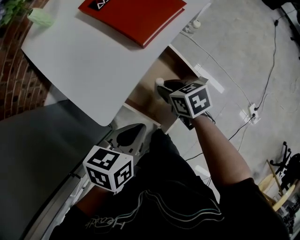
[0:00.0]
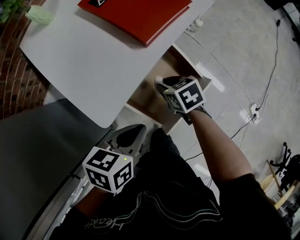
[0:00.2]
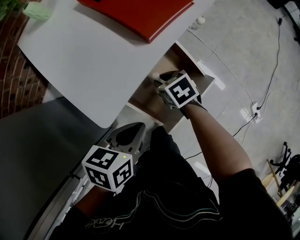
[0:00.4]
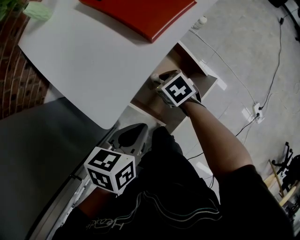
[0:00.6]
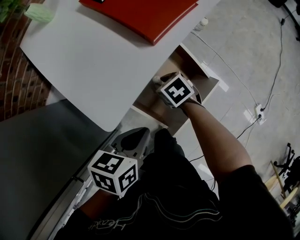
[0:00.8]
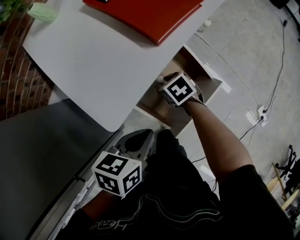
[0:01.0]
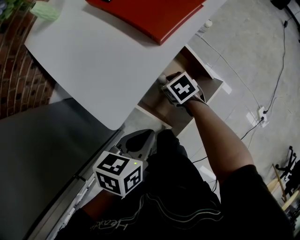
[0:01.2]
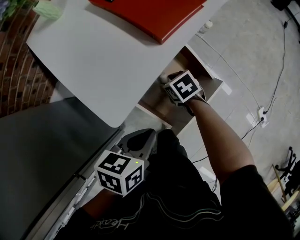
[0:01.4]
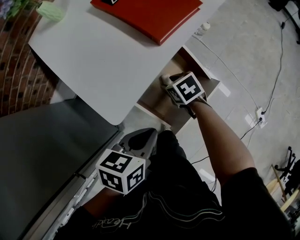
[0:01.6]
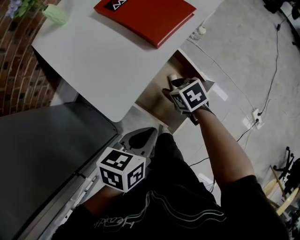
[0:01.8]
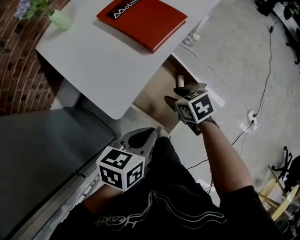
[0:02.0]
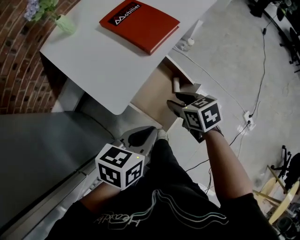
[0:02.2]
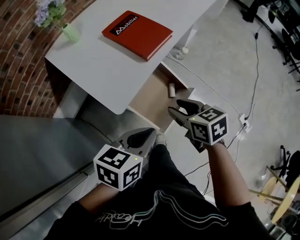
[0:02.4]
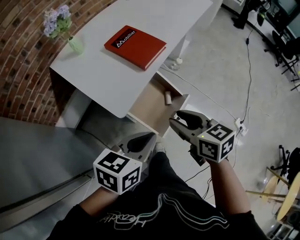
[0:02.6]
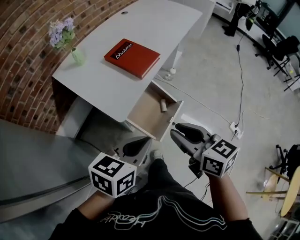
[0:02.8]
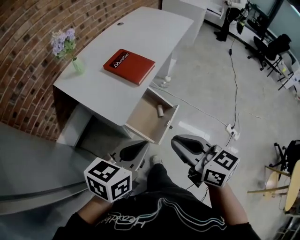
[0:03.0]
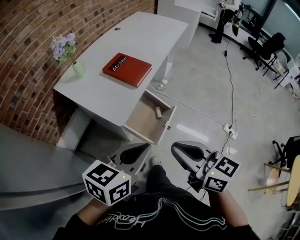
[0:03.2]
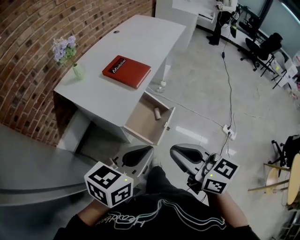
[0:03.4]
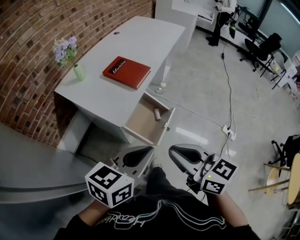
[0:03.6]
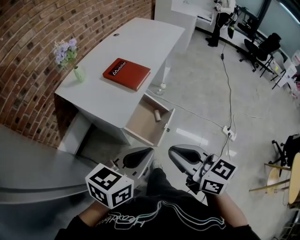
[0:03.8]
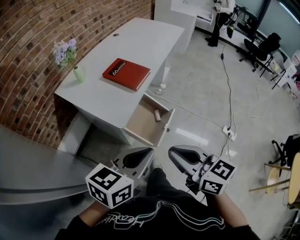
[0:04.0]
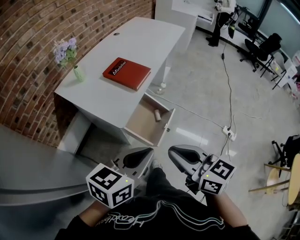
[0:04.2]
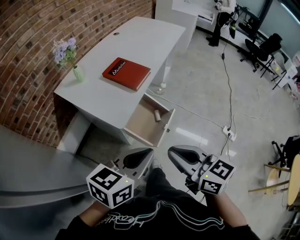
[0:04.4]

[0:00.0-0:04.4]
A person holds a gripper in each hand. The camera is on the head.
0:00.0 to 0:01.4: The right gripper travels downward by approximately 10 cm.
0:01.4 to 0:03.0: The right gripper goes roughly 60 cm upward and backward, angles its fingers upward, by some 40 degrees, and closes up. Meanwhile the left gripper moves upward and backward, roughly 35 cm, and rotates approximately 30 degrees.
0:03.0 to 0:04.4: The right gripper is displaced backward by roughly 5 cm, while the left gripper changes place by approximately 5 cm.

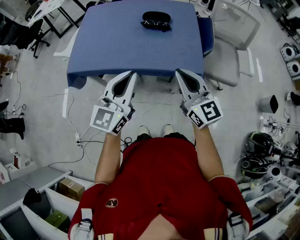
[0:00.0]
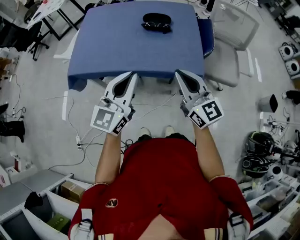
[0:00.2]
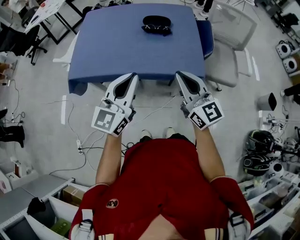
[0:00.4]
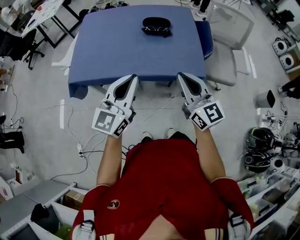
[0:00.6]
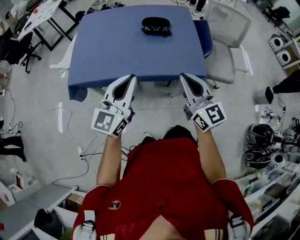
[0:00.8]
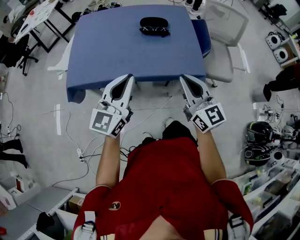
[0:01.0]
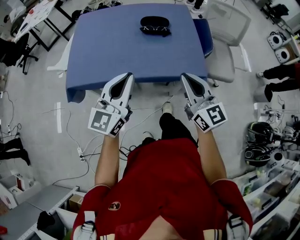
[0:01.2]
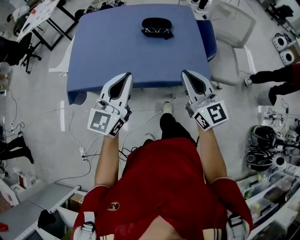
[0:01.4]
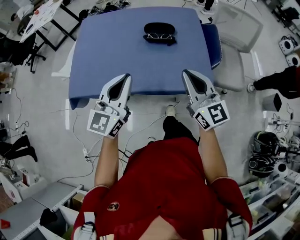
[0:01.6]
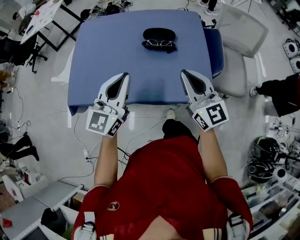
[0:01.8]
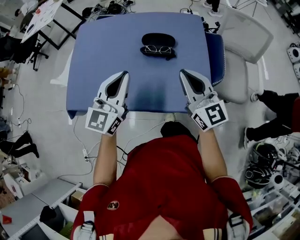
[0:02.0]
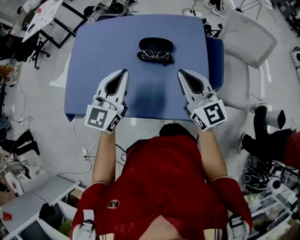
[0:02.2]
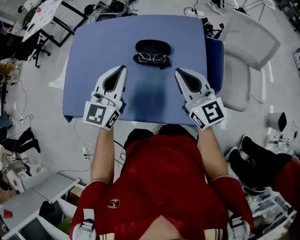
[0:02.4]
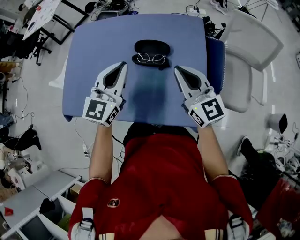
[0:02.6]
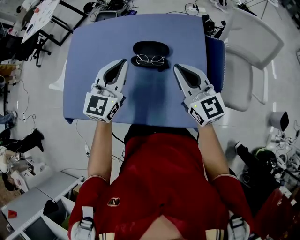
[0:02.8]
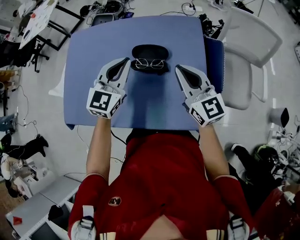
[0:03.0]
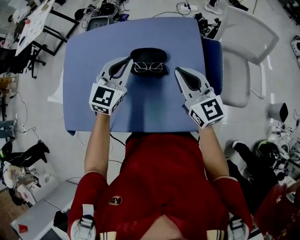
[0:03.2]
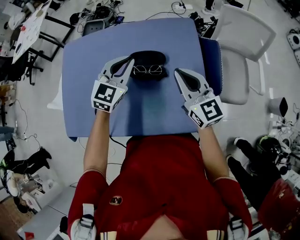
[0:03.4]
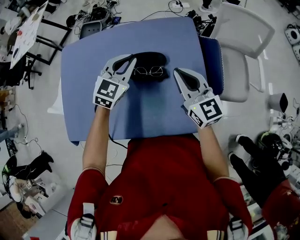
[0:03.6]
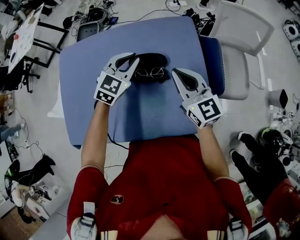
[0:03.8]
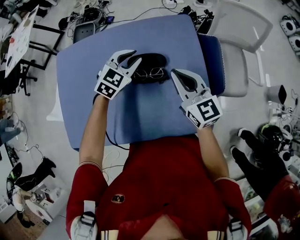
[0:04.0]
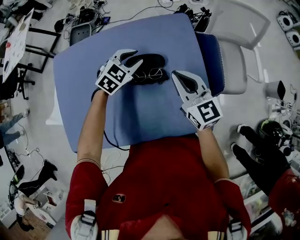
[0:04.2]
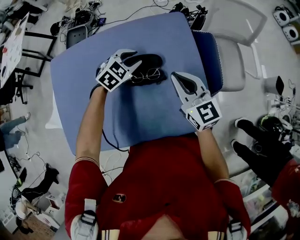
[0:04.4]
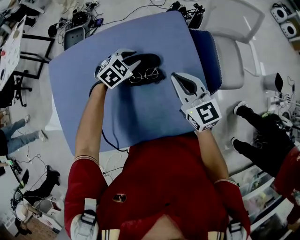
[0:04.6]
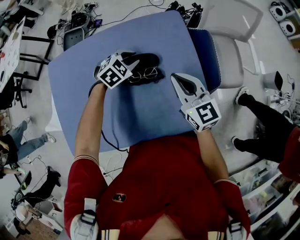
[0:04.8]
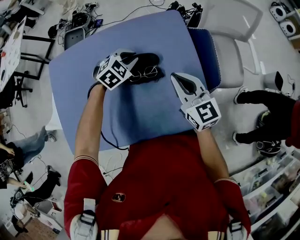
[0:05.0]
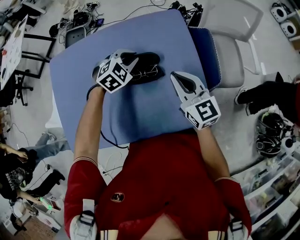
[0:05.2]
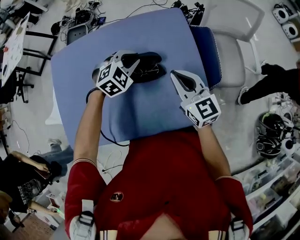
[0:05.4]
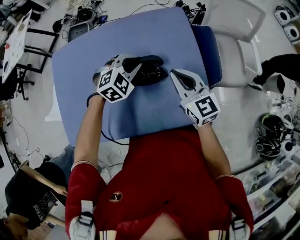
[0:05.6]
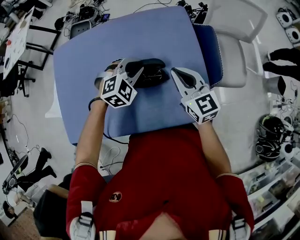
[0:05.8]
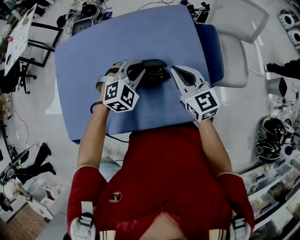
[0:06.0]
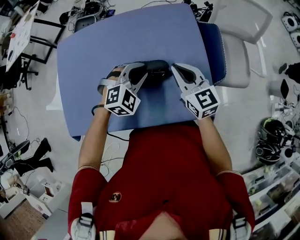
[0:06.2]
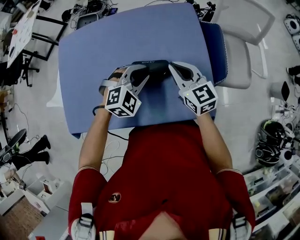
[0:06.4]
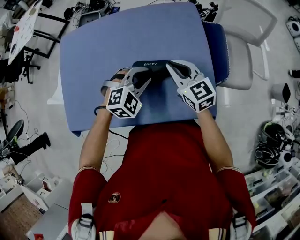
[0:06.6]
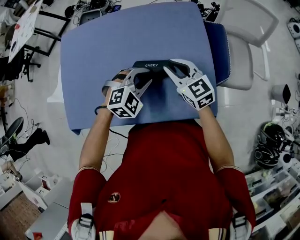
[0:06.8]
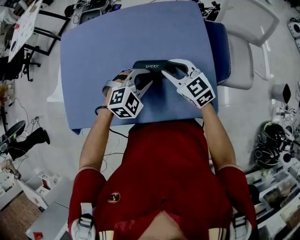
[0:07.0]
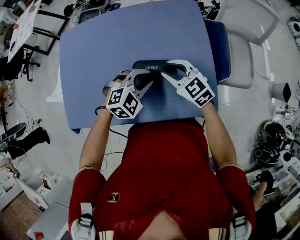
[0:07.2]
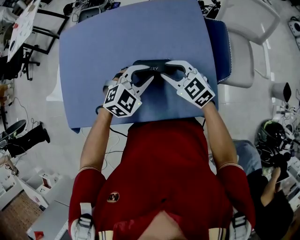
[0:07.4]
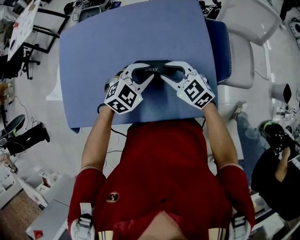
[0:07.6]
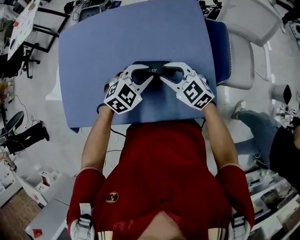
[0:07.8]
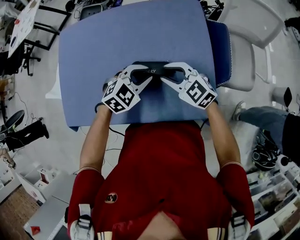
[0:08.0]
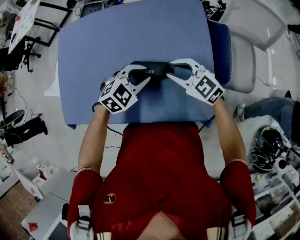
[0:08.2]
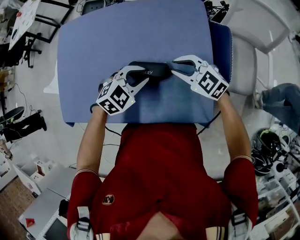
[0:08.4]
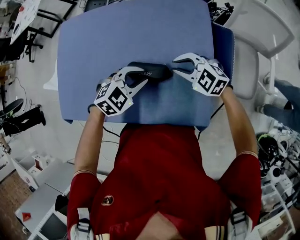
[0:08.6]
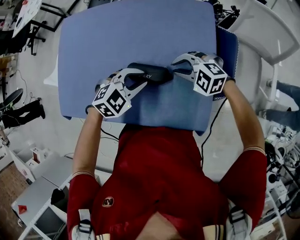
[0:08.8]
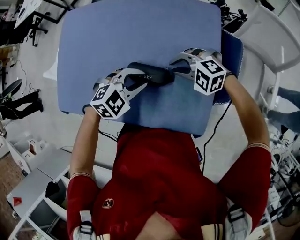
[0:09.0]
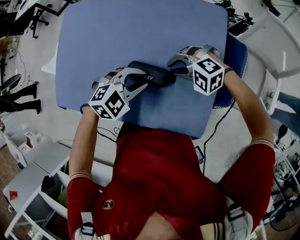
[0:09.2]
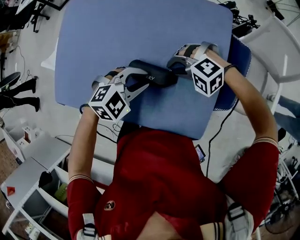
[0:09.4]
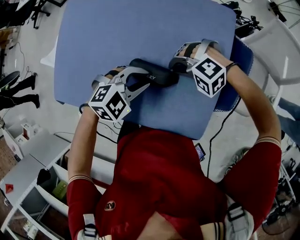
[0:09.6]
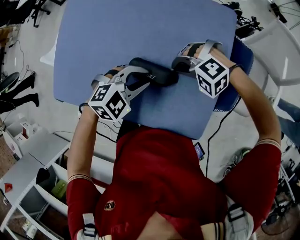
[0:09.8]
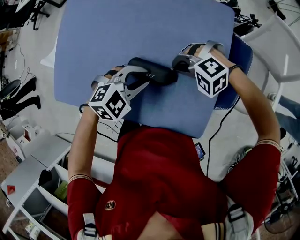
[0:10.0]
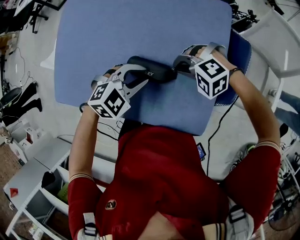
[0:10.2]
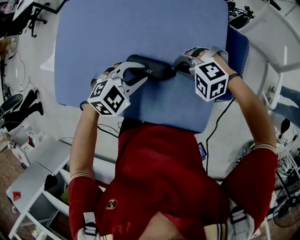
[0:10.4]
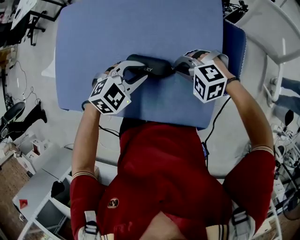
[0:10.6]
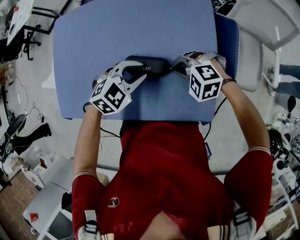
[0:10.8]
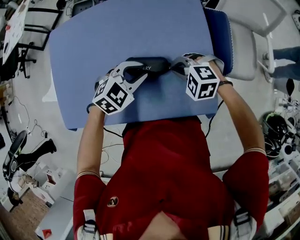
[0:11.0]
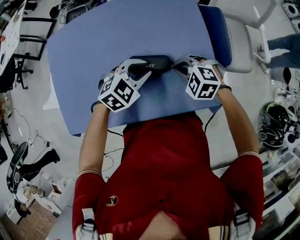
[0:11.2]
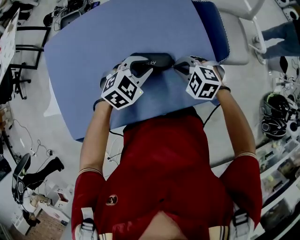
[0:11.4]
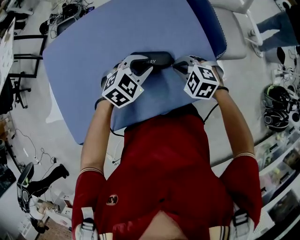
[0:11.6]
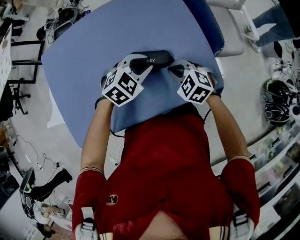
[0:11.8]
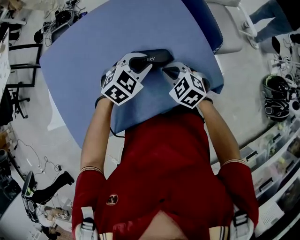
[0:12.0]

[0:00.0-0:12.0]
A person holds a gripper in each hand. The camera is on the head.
0:00.0 to 0:01.6: The right gripper travels forward by roughly 10 cm; the left gripper is displaced forward and to the left by approximately 15 cm.
0:01.6 to 0:03.0: The right gripper goes roughly 25 cm forward. Meanwhile the left gripper heads forward and to the right, covering roughly 30 cm.
0:03.0 to 0:04.4: The right gripper ends up roughly 5 cm from where it was. Meanwhile the left gripper shifts some 20 cm downward and forward, angles its fingers downward, by approximately 30 degrees, and opens up.
0:04.4 to 0:06.0: The left gripper is displaced backward by about 10 cm, and turns by roughly 20 degrees.
0:06.0 to 0:07.6: The left gripper shifts approximately 5 cm backward. The right gripper moves downward and to the left, about 10 cm, turns by some 30 degrees, and opens.
0:07.6 to 0:09.0: The right gripper shifts by approximately 10 cm, and turns by about 50 degrees.
0:10.4 to 0:12.0: The right gripper moves about 10 cm, and rotates around the line of its fingers by approximately 70 degrees, clockwise from behind.

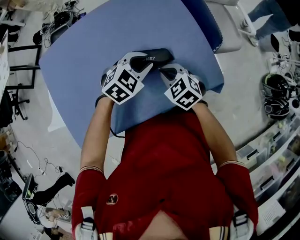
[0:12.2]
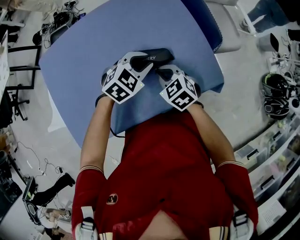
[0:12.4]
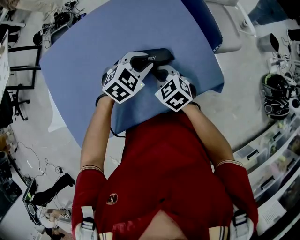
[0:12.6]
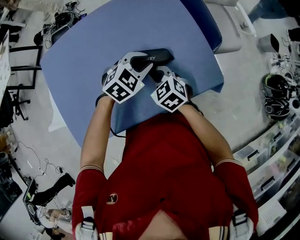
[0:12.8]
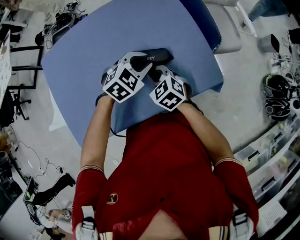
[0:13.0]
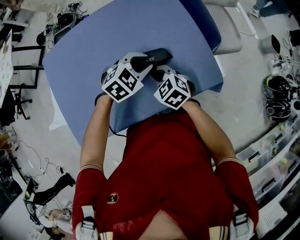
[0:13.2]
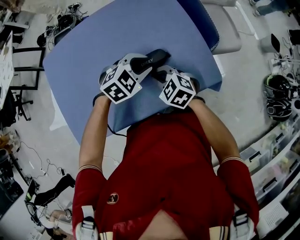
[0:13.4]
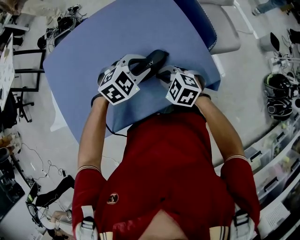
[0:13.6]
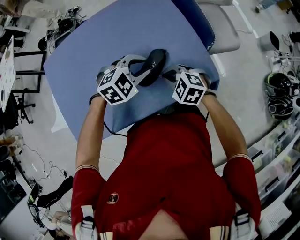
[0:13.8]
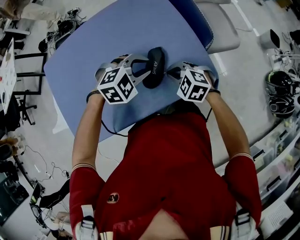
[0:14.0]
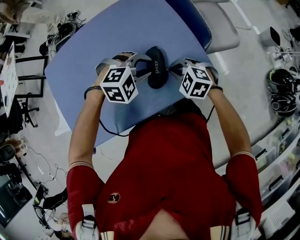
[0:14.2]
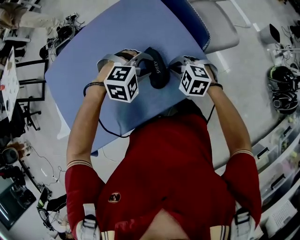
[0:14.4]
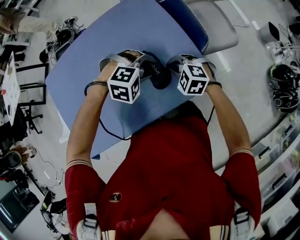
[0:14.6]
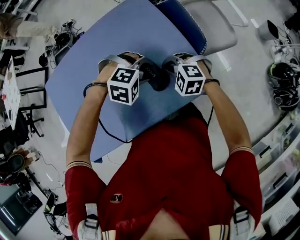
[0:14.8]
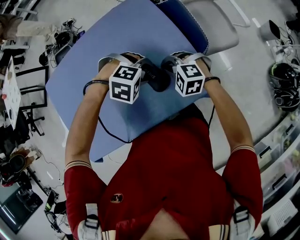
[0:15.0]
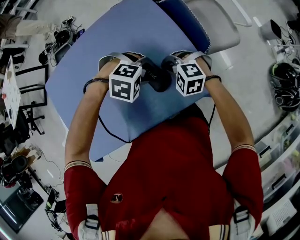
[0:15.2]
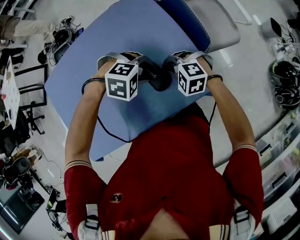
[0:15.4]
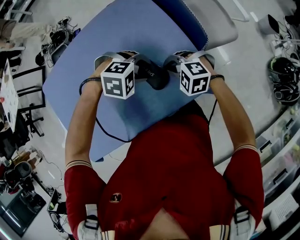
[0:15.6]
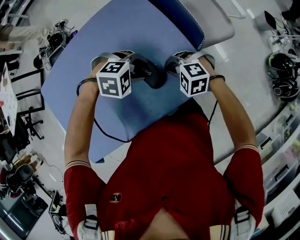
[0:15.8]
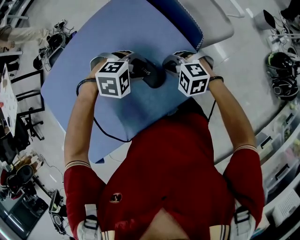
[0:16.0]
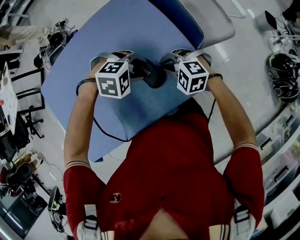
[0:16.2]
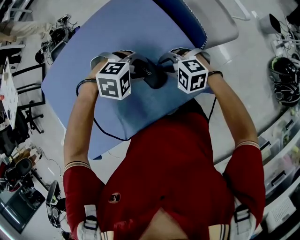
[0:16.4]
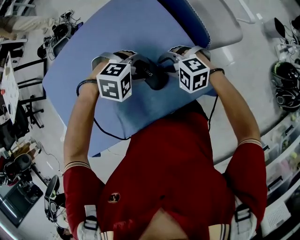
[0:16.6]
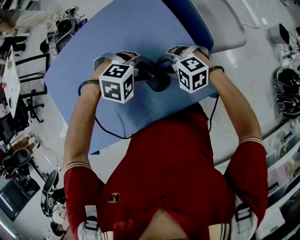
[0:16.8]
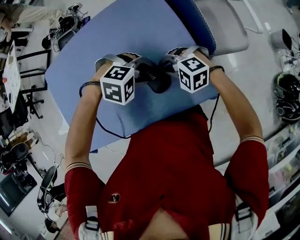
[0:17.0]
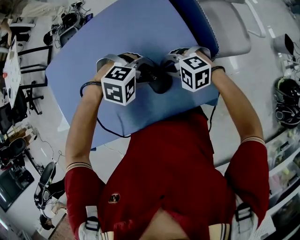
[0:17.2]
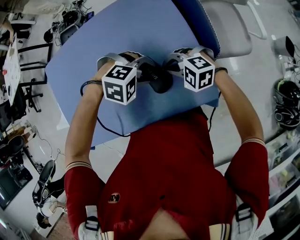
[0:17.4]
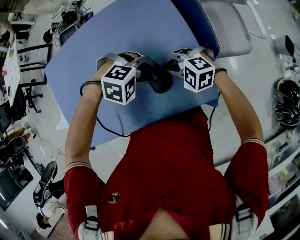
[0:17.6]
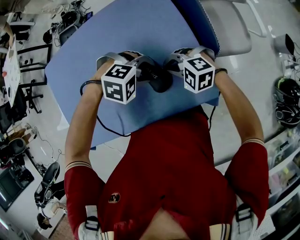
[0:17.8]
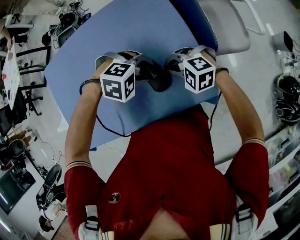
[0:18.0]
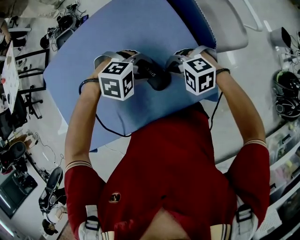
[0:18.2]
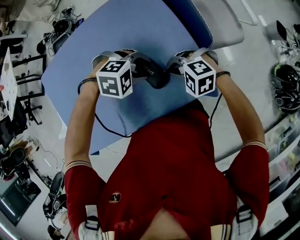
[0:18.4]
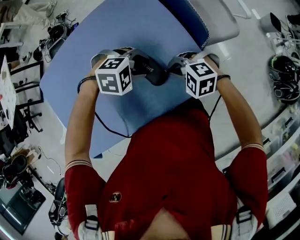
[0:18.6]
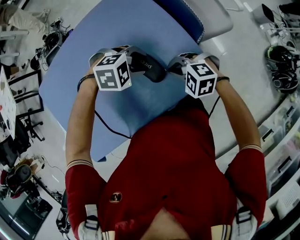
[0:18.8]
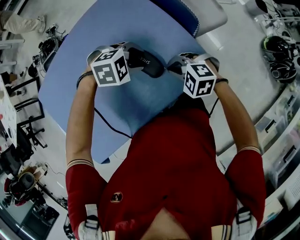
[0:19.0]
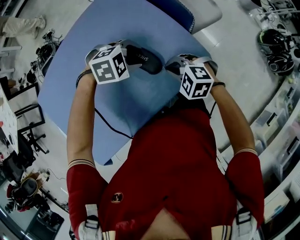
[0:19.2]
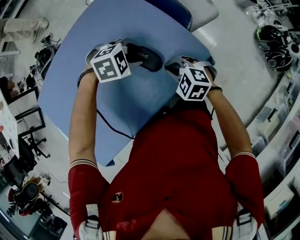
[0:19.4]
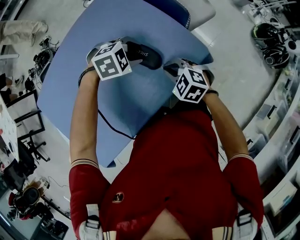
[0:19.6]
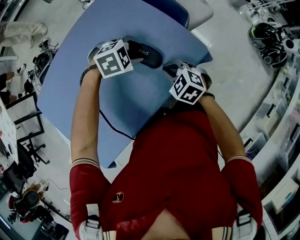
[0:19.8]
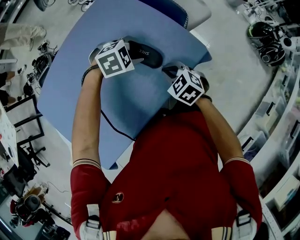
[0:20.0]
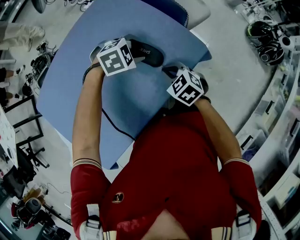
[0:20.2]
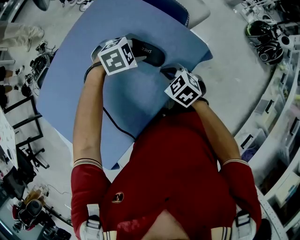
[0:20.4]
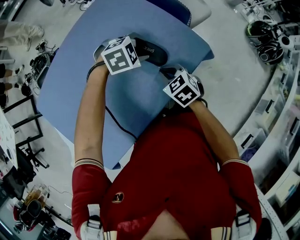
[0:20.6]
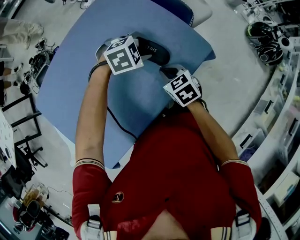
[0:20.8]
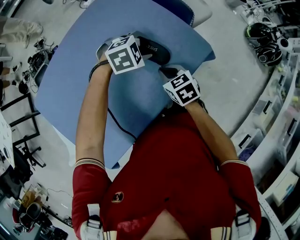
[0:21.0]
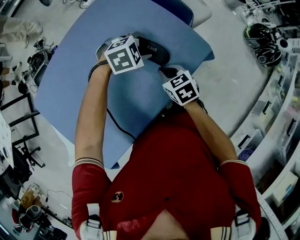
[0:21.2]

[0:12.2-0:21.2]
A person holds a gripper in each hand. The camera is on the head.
0:12.2 to 0:13.8: The right gripper moves roughly 5 cm, and rotates some 20 degrees.
0:13.8 to 0:15.2: The right gripper ends up approximately 10 cm from where it was; the left gripper ends up some 5 cm from where it was, and changes its angle by about 50 degrees.
0:15.2 to 0:16.6: The right gripper opens.
0:16.6 to 0:18.2: The right gripper closes.
0:18.2 to 0:19.8: The right gripper shifts by approximately 10 cm, and rotates around the line of its fingers by some 50 degrees, clockwise from behind.
0:19.8 to 0:21.2: The right gripper swivels approximately 30 degrees.
